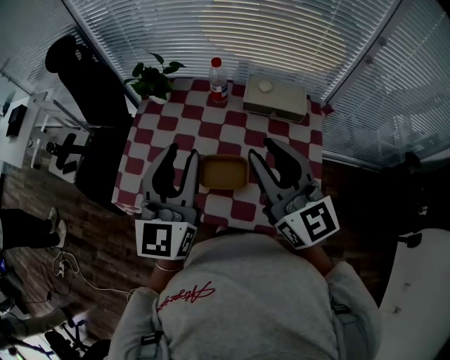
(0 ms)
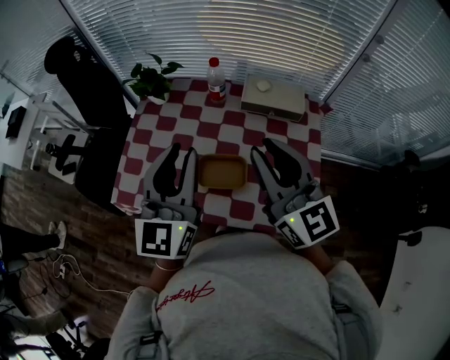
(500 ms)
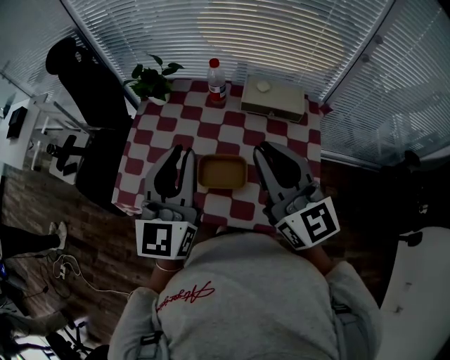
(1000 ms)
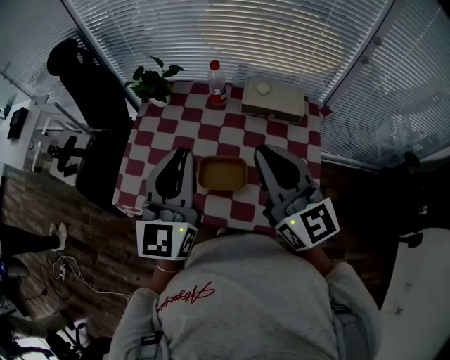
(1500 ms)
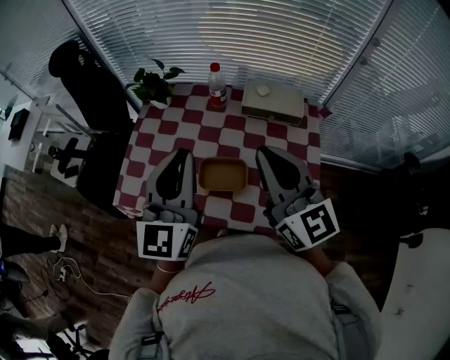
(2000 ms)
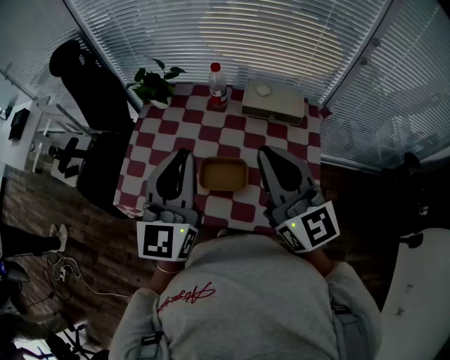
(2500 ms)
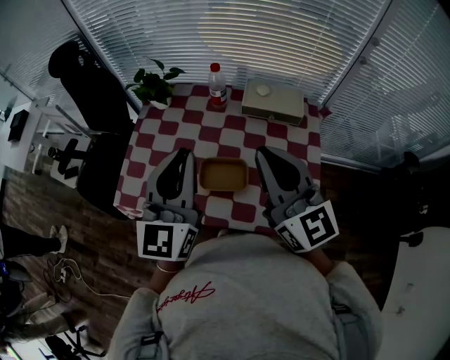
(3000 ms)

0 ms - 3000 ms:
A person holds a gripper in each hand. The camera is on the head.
0 ms - 1500 ms: The right gripper closes its fingers.
1500 ms - 3000 ms: Both grippers stay put.

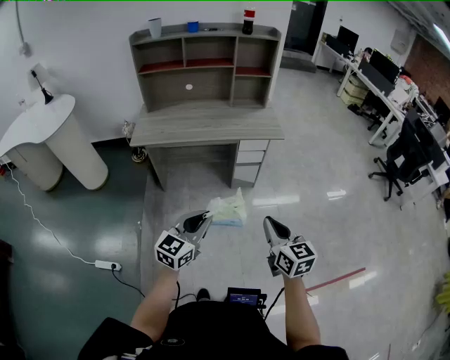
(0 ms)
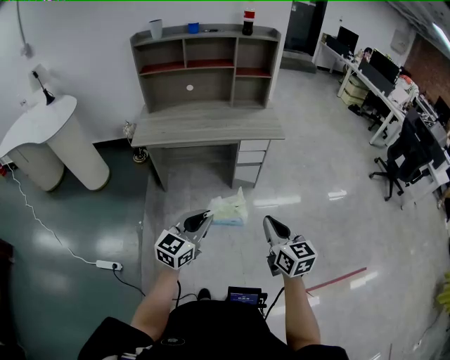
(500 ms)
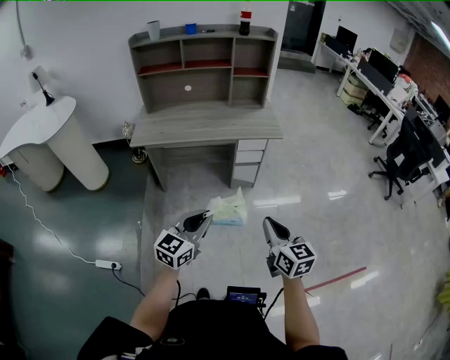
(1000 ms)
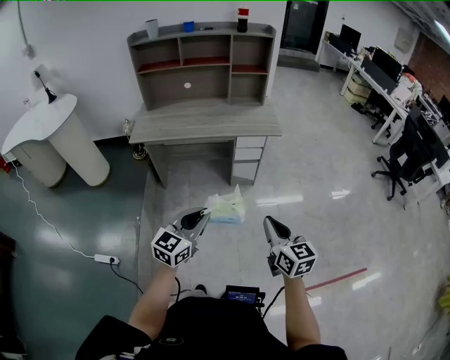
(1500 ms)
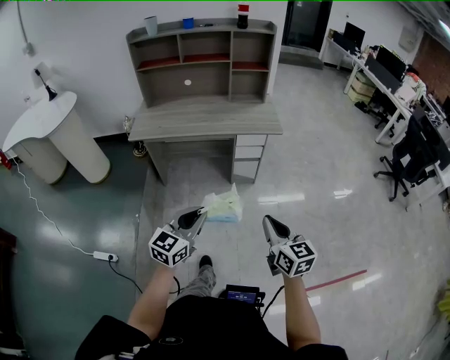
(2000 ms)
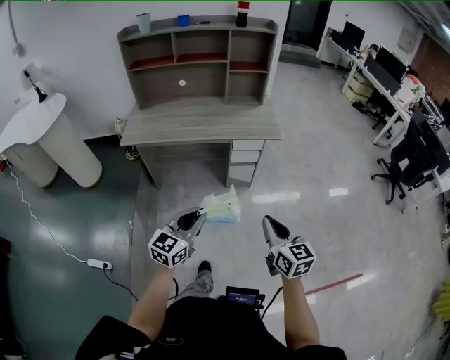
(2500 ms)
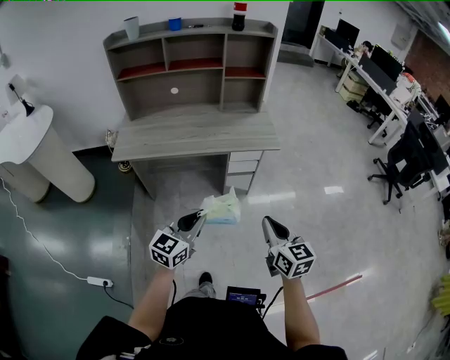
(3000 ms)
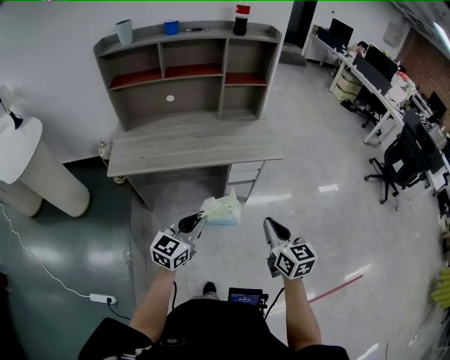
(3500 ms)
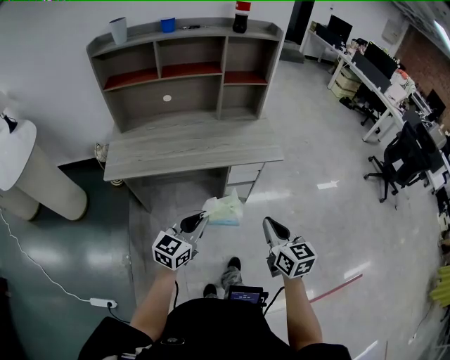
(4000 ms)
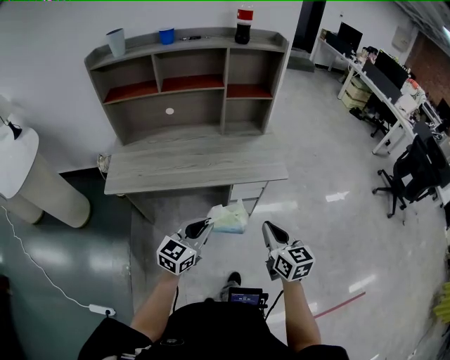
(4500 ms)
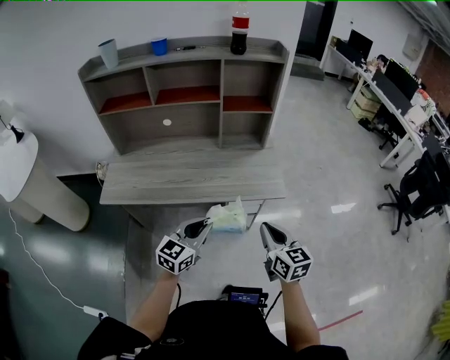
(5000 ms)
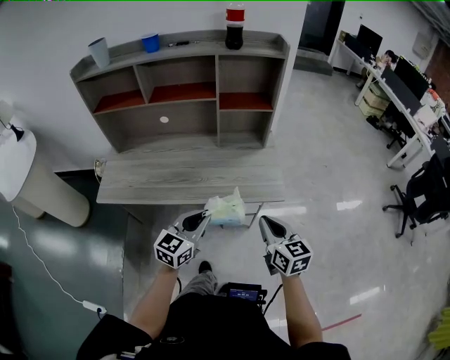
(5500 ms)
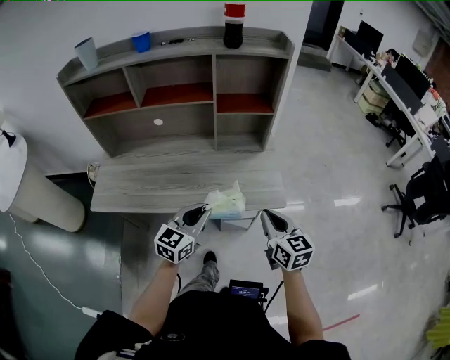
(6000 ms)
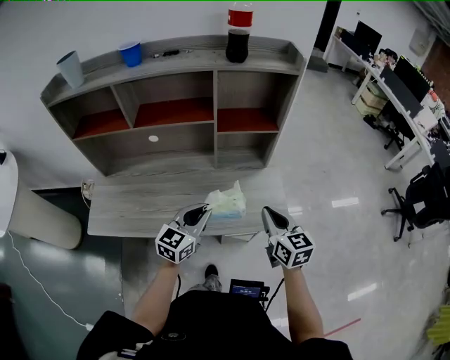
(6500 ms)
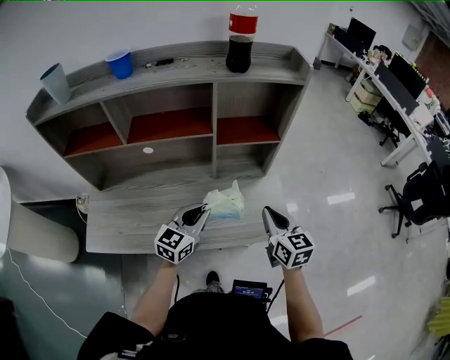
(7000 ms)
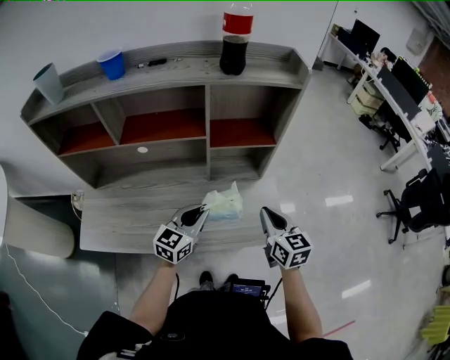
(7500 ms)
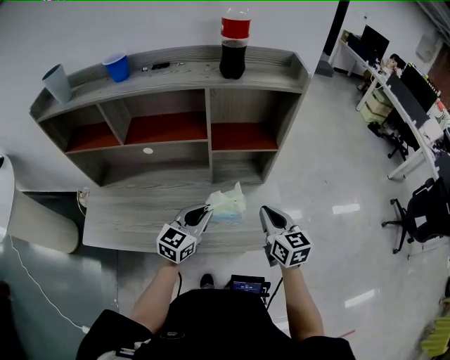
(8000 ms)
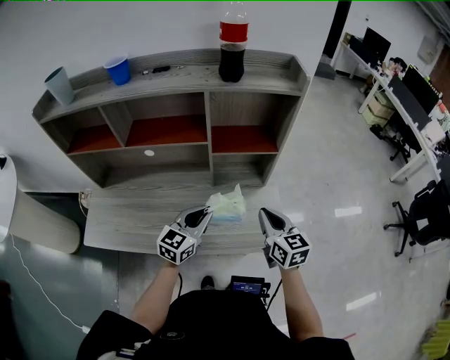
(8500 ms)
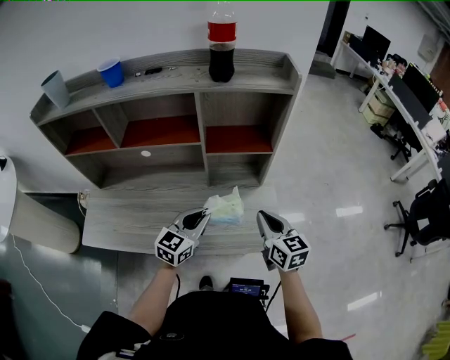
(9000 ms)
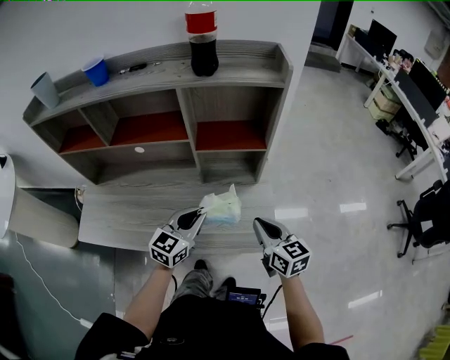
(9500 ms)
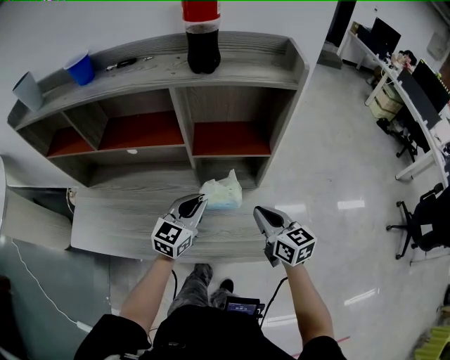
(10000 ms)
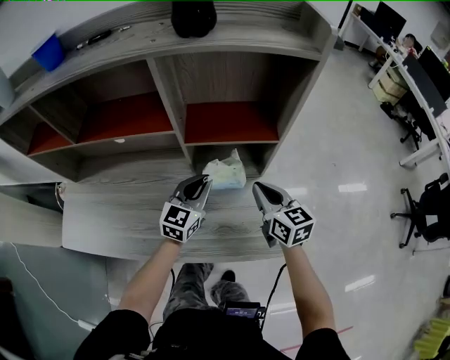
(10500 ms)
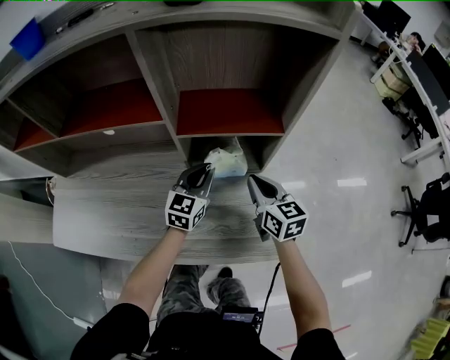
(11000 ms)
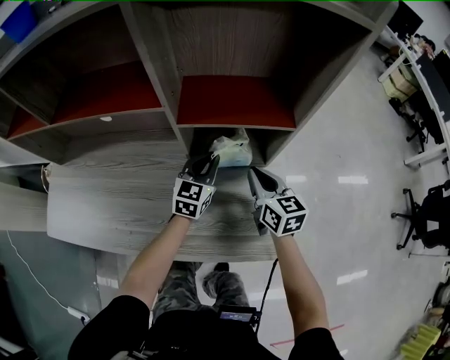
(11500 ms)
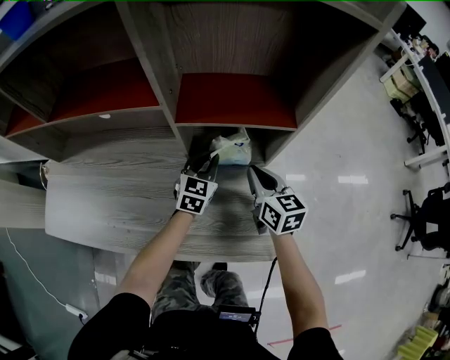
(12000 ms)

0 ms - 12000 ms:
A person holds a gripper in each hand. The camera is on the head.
0 ms - 2000 ms: The right gripper travels to the right by roughly 5 cm.
2000 ms - 4000 ms: The grippers both shift forward by roughly 25 cm.
4000 ms - 6000 ms: The grippers both shift forward by some 30 cm.
6000 ms - 8000 ms: Both grippers move forward, about 20 cm.
8000 ms - 10000 ms: Both grippers move forward, some 5 cm.
10000 ms - 12000 ms: The grippers both shift downward and forward by some 20 cm.

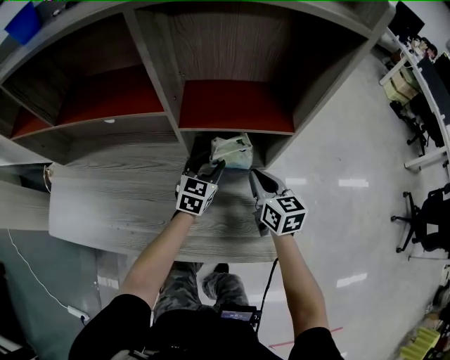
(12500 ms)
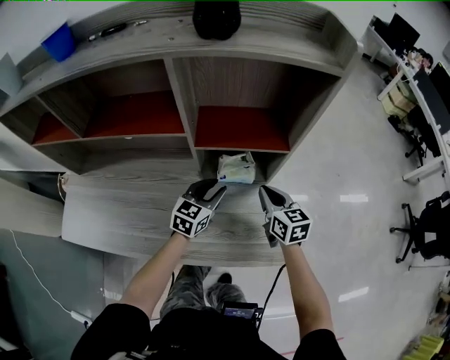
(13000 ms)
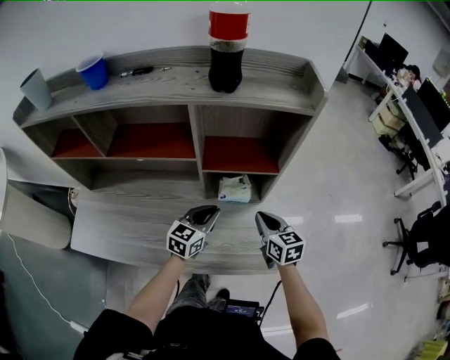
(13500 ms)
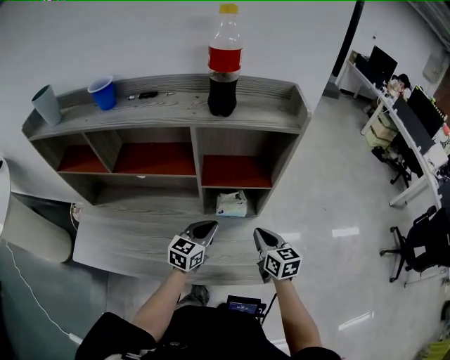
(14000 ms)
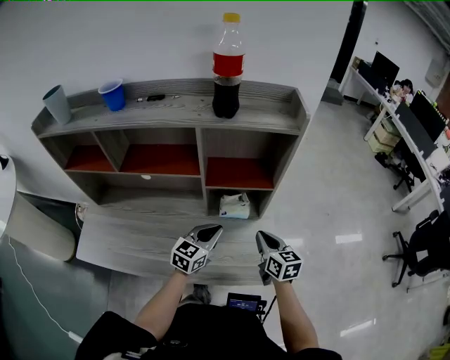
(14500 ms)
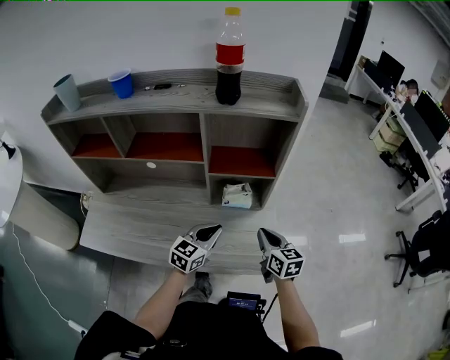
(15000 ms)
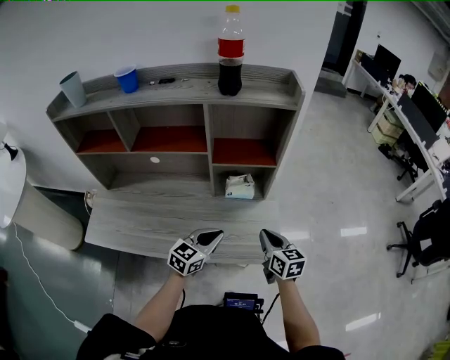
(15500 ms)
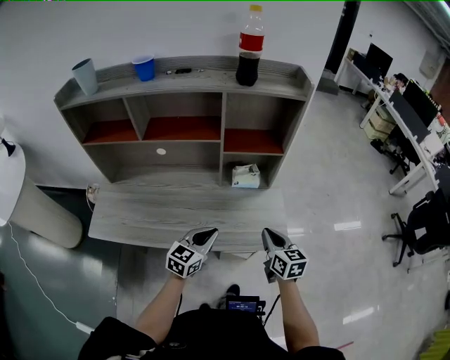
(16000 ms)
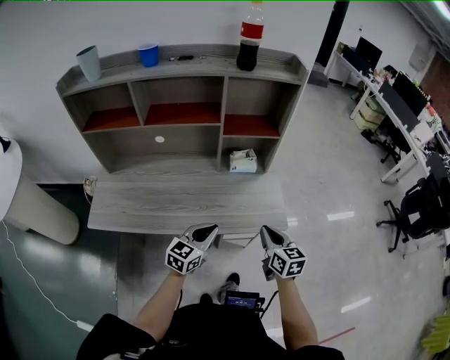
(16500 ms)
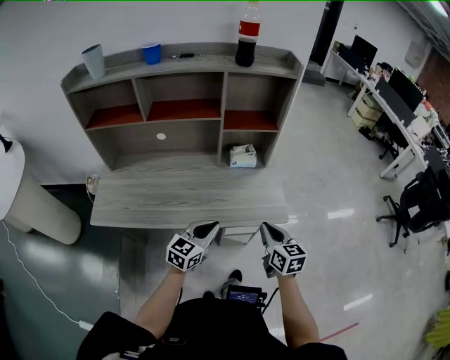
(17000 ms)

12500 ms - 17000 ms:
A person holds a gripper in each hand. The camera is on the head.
12500 ms - 14500 ms: Both grippers travel together upward and backward, some 20 cm. The left gripper closes its fingers.
14500 ms - 17000 ms: The two grippers go about 25 cm backward.

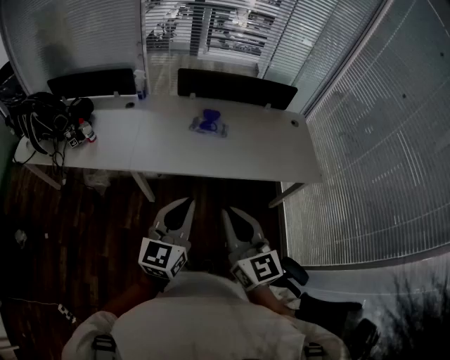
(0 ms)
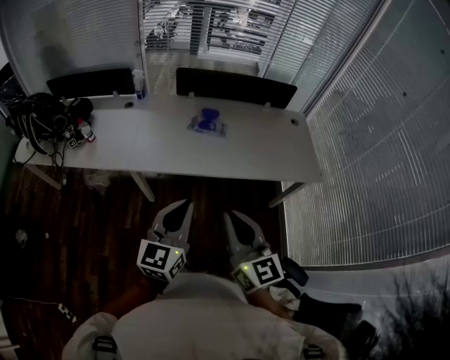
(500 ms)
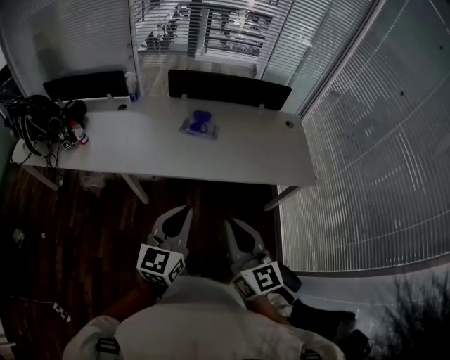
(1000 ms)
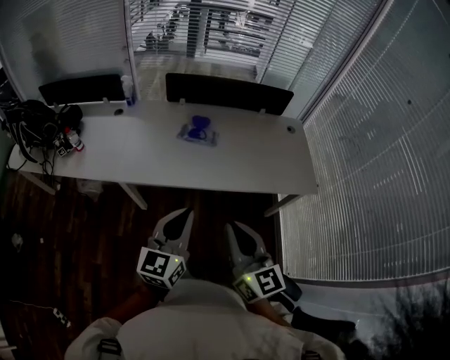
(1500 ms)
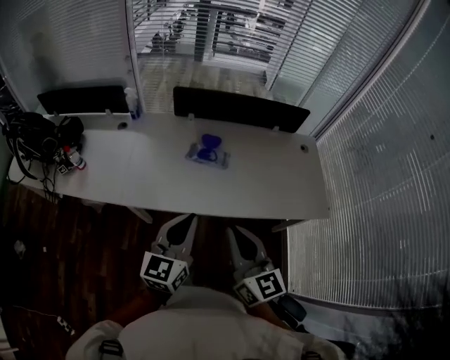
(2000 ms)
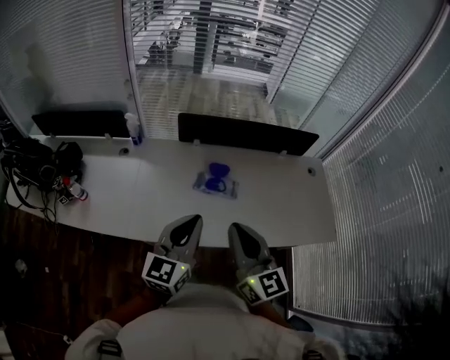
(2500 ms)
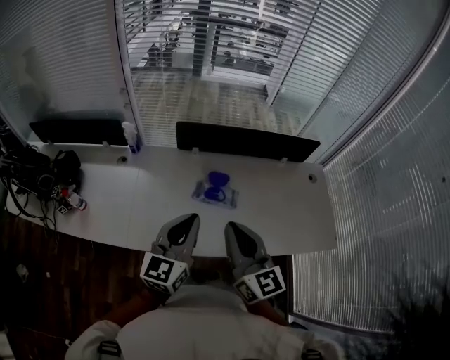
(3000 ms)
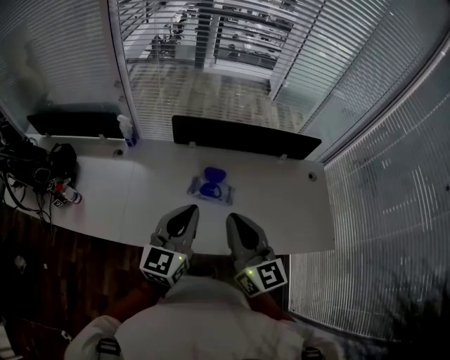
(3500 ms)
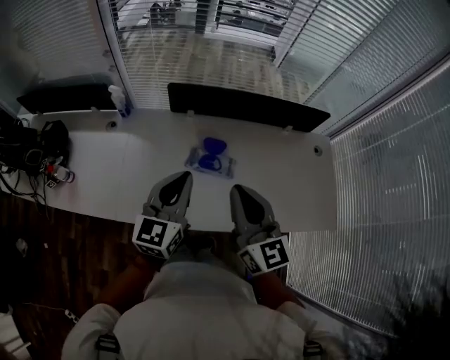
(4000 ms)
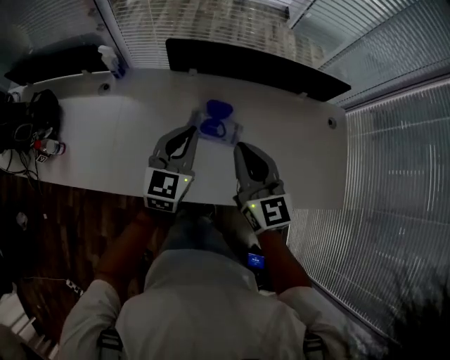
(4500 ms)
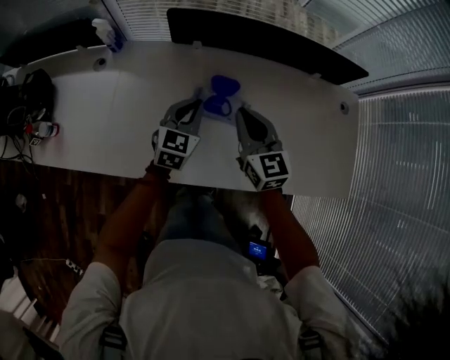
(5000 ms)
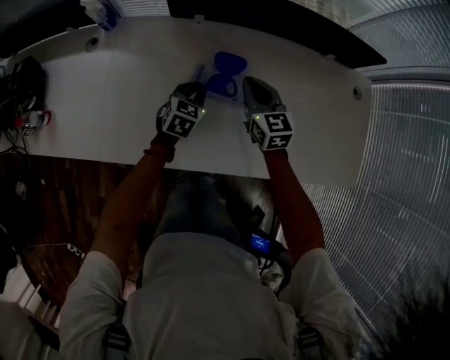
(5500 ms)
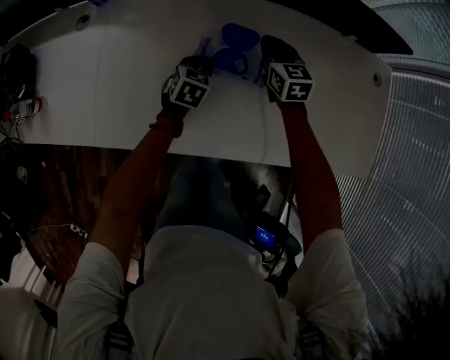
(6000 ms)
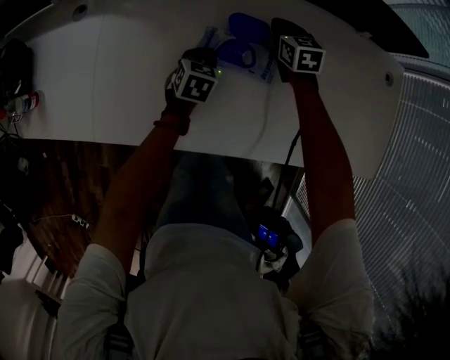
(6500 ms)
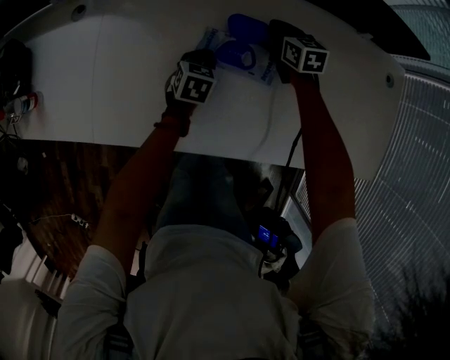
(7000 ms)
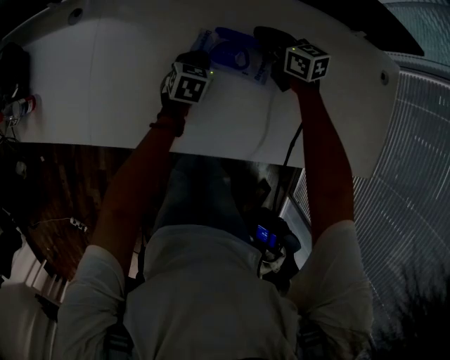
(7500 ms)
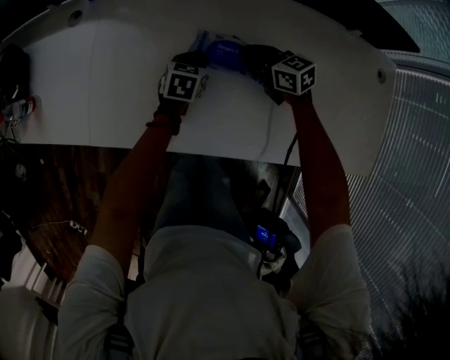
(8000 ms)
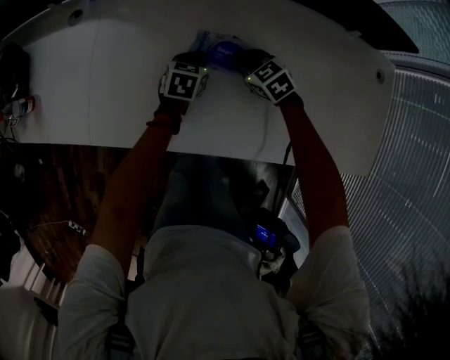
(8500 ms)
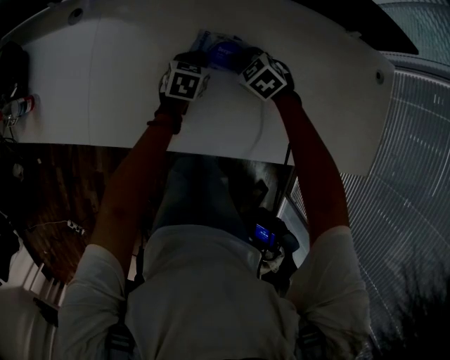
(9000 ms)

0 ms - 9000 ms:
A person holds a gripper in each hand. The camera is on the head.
0 ms - 2000 ms: The grippers both shift forward by approximately 15 cm.
2000 ms - 4500 ms: Both grippers travel together forward, approximately 30 cm.
4500 ms - 7000 ms: The left gripper shifts about 35 cm downward, and angles its fingers downward, by about 40 degrees; the right gripper moves downward and forward, some 40 cm, and rotates approximately 30 degrees.
7000 ms - 9000 ms: The right gripper goes some 15 cm to the left and backward, and turns by about 50 degrees.
